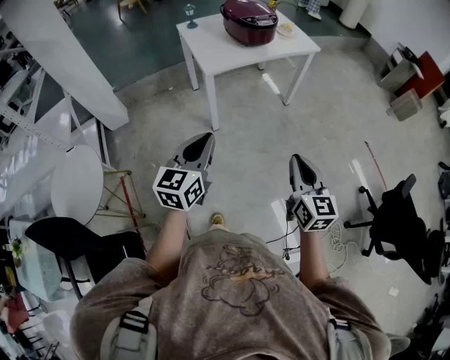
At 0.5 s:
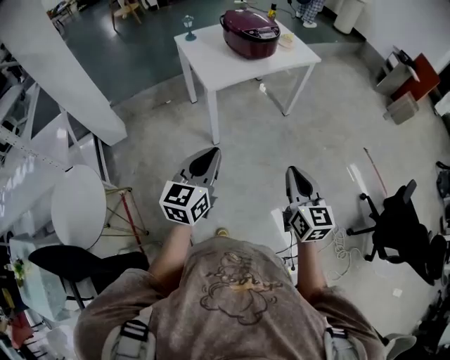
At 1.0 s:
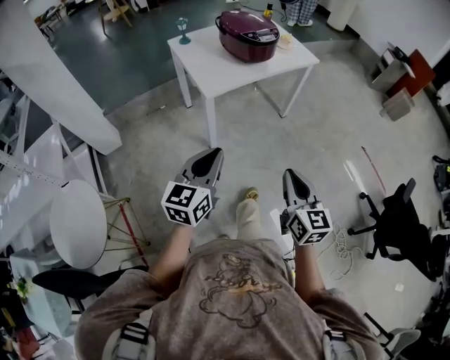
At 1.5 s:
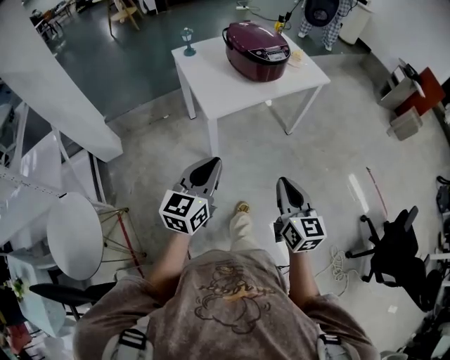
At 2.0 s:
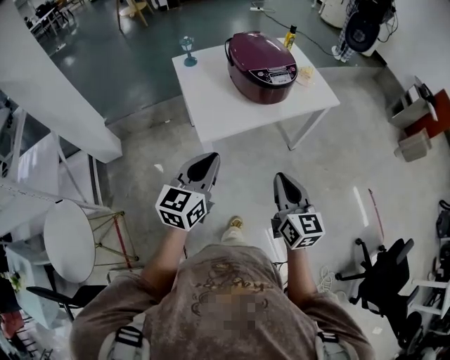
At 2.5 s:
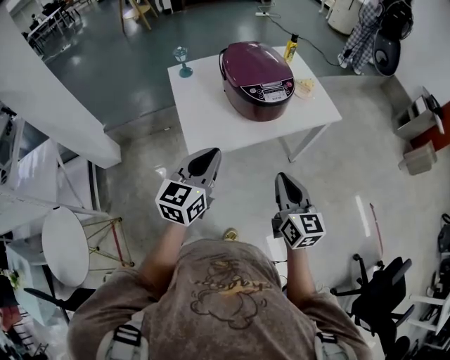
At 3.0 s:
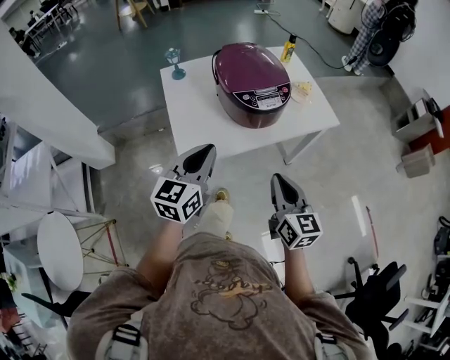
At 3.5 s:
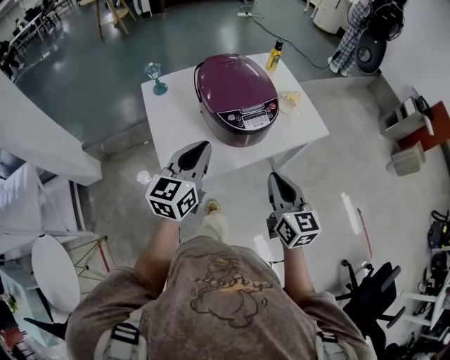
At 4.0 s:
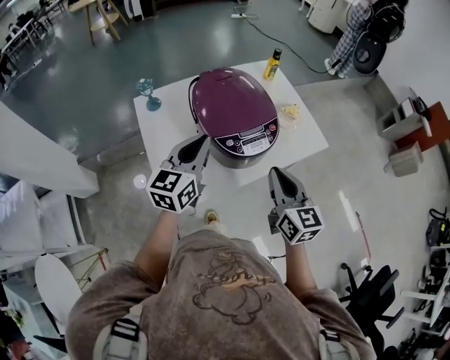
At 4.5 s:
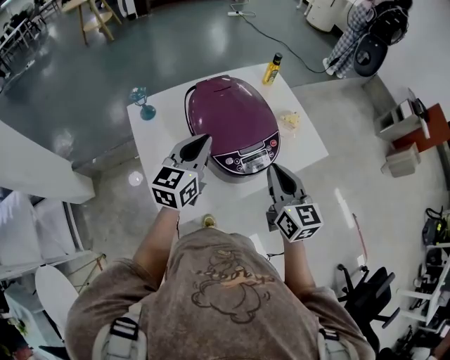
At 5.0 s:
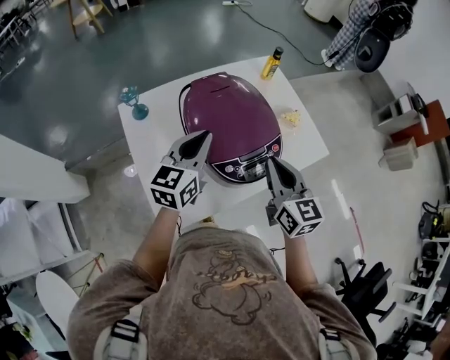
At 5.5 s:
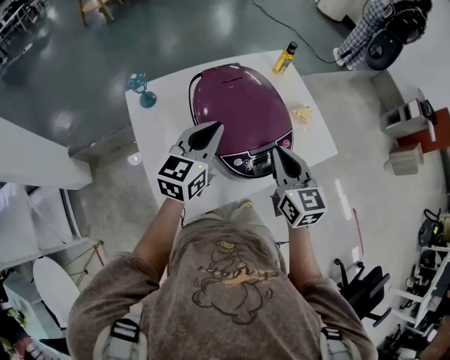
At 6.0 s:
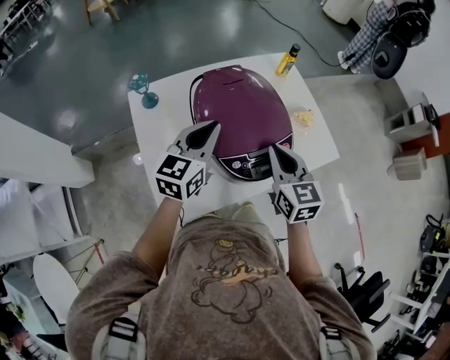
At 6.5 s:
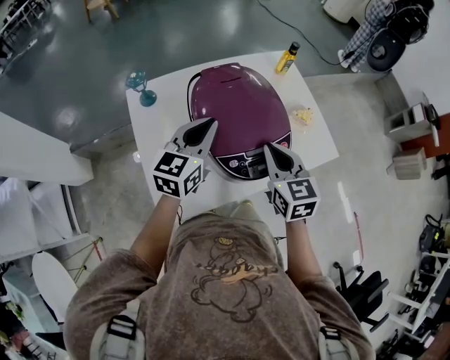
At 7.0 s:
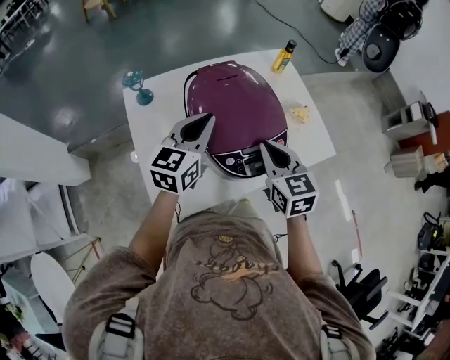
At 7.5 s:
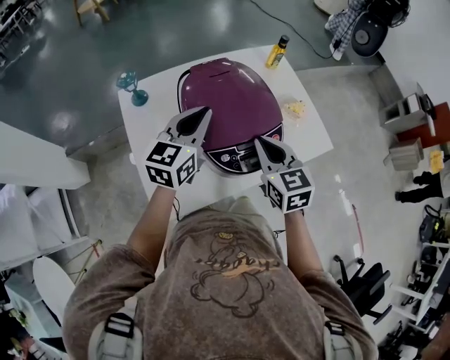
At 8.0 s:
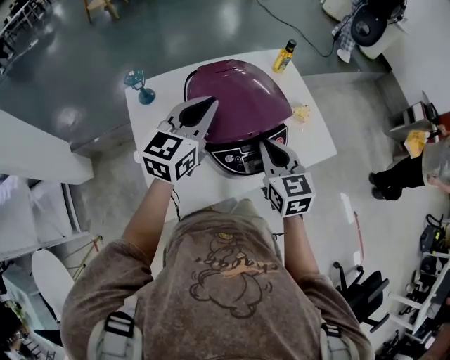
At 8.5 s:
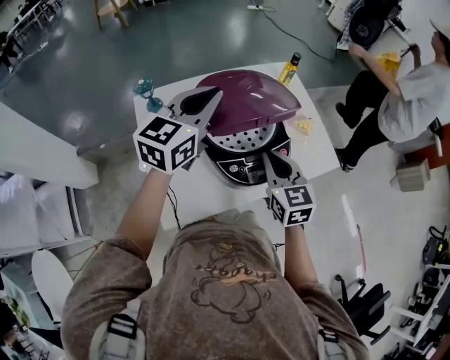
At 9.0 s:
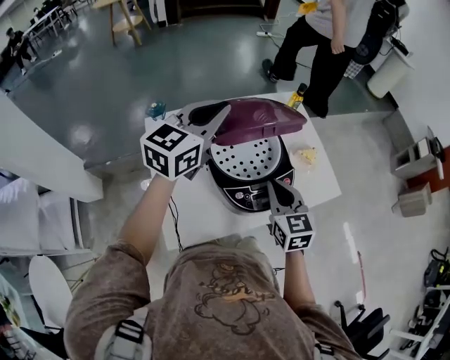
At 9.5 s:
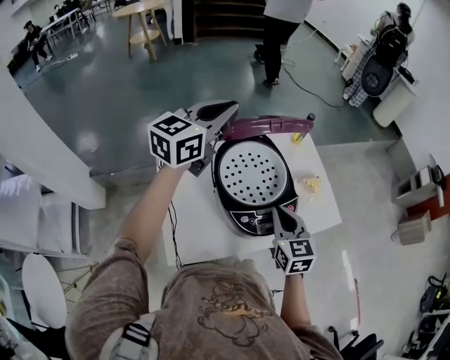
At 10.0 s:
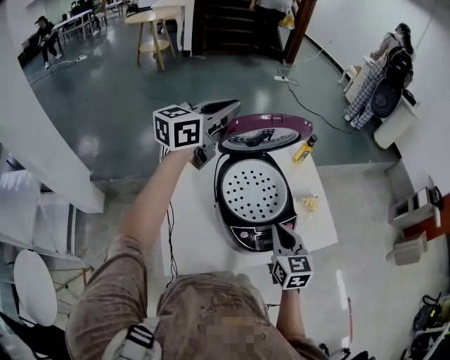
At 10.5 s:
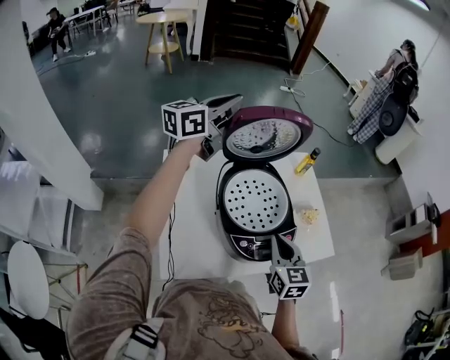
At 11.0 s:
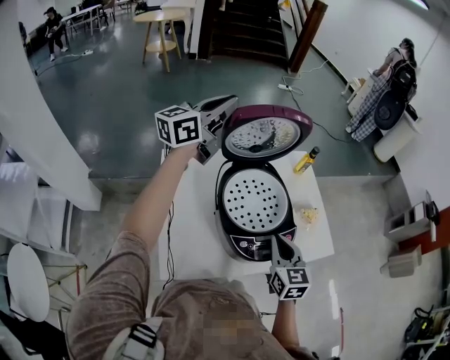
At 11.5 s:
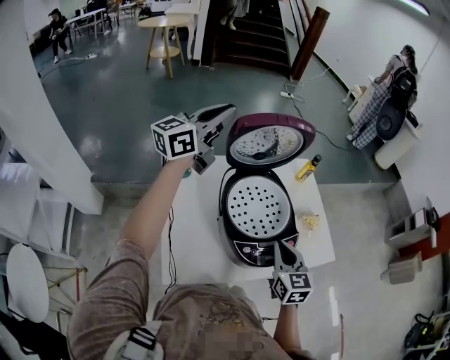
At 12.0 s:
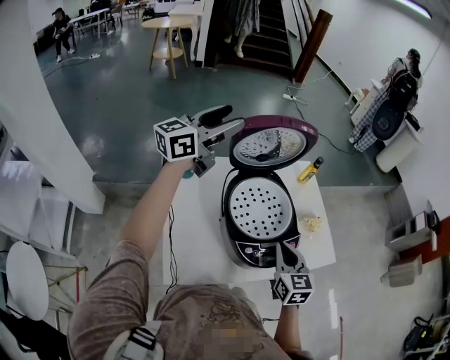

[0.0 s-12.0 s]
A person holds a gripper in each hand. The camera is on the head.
0.0 to 2.0 s: The two grippers go approximately 35 cm forward.
2.0 to 4.0 s: Both grippers travel together forward, approximately 35 cm.
4.0 to 6.0 s: Both grippers travel together forward, about 15 cm.
6.0 to 8.0 s: The left gripper is displaced upward by approximately 5 cm.
8.0 to 10.0 s: The left gripper is displaced upward, forward and to the left by approximately 20 cm.
10.0 to 12.0 s: The left gripper changes place by some 5 cm, and opens.

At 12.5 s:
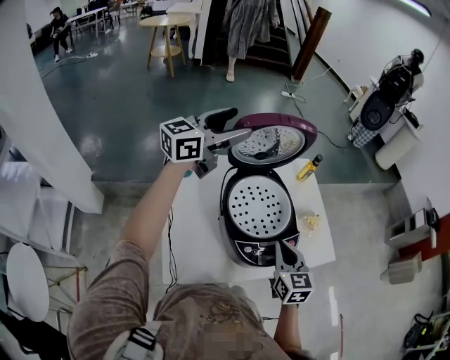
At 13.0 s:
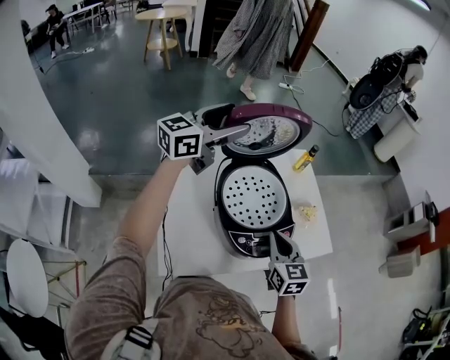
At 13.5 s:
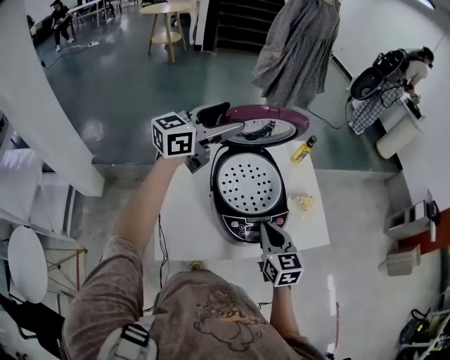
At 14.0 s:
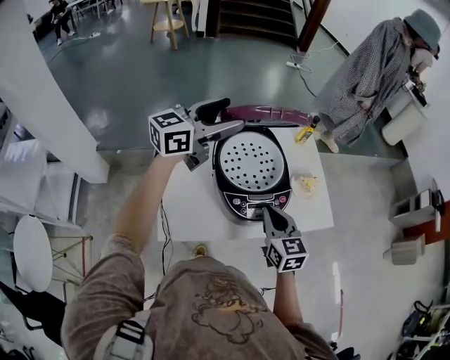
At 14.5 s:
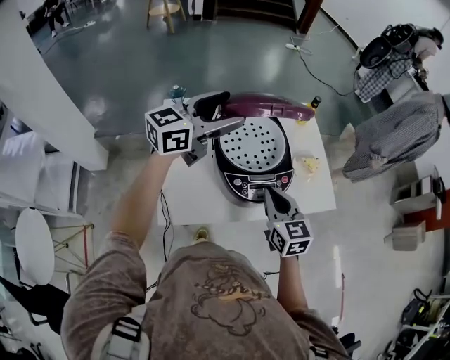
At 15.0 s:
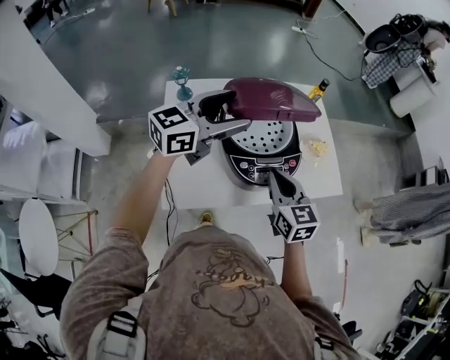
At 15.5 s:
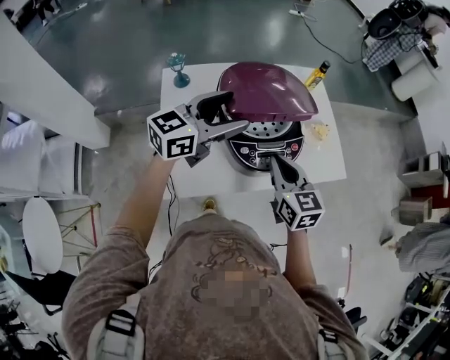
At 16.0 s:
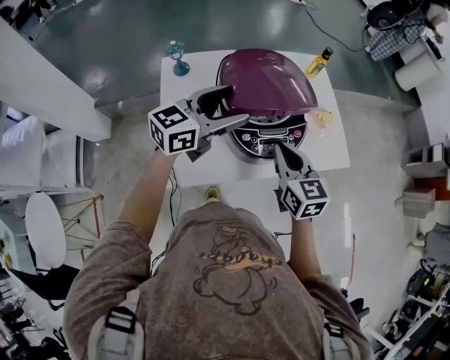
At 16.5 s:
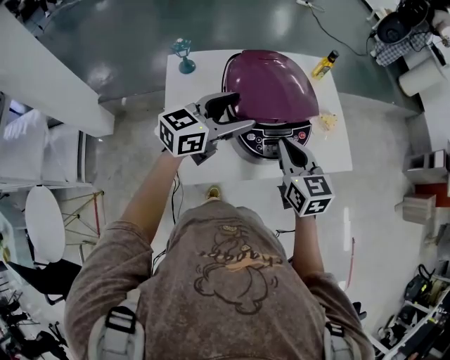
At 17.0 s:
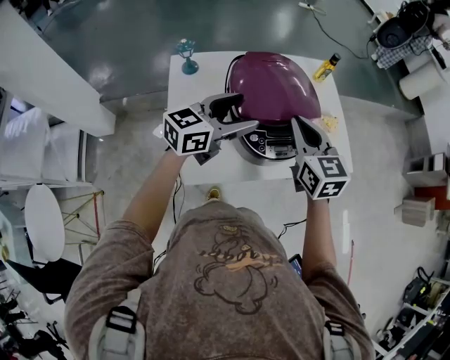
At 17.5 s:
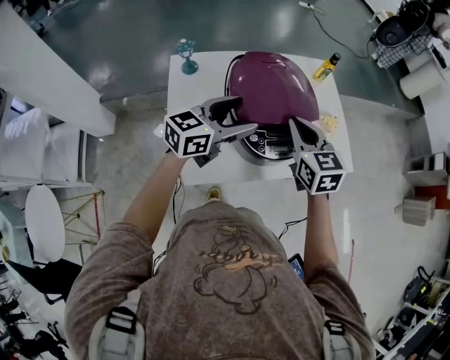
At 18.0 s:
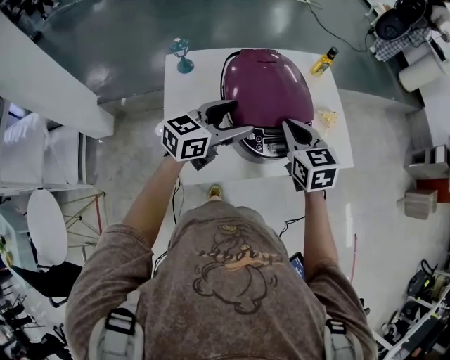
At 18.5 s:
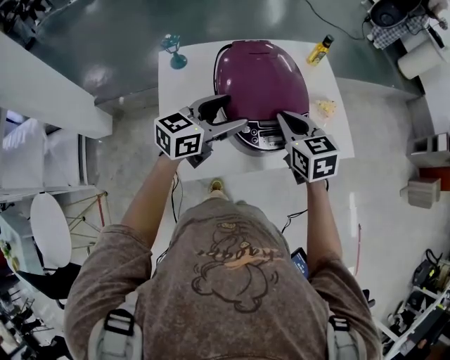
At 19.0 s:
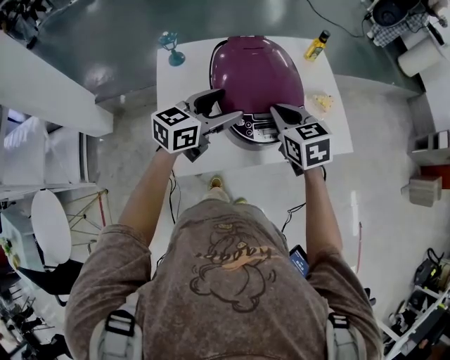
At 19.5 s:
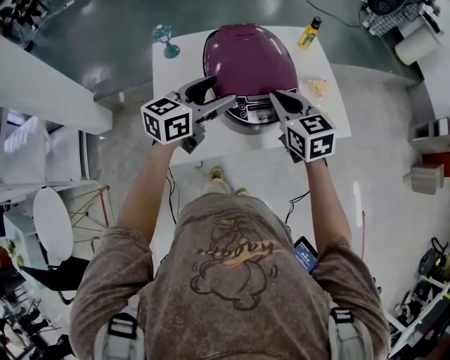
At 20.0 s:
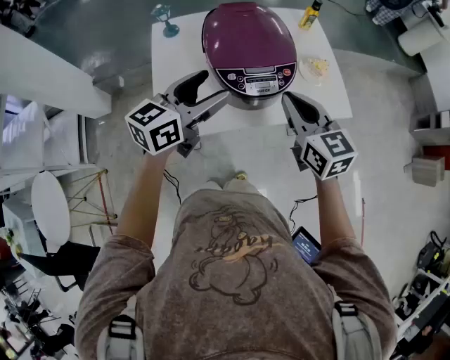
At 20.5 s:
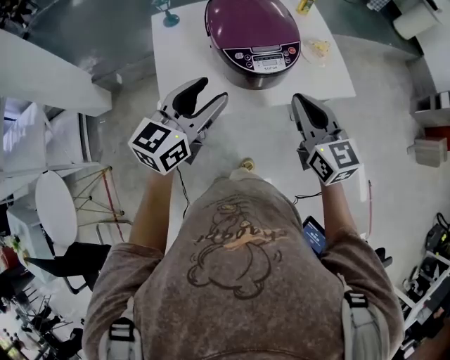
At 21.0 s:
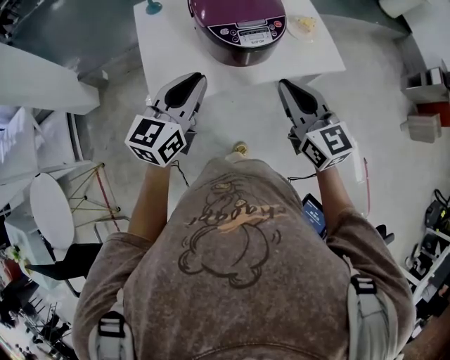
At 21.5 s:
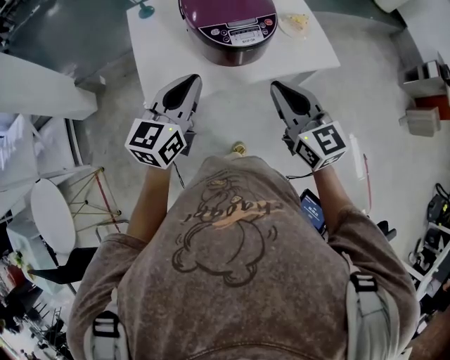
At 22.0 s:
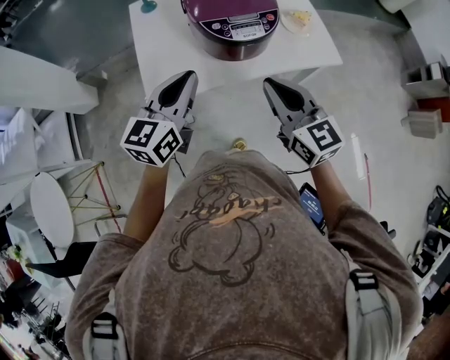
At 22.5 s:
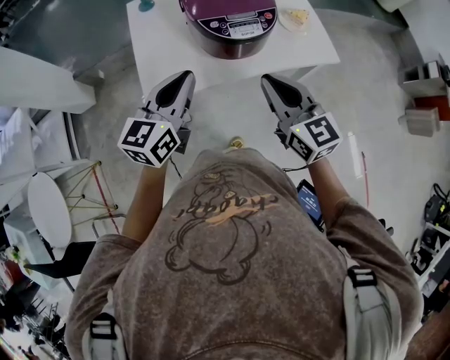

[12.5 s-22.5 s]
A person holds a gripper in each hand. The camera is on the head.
12.5 to 14.5 s: The left gripper goes approximately 15 cm backward, to the right and downward.
14.5 to 16.5 s: The left gripper shifts about 15 cm downward and backward.
18.5 to 20.5 s: The grippers both shift backward by roughly 15 cm. The right gripper rotates roughly 20 degrees.
20.5 to 22.5 s: The right gripper goes roughly 5 cm backward. Meanwhile the left gripper closes up.

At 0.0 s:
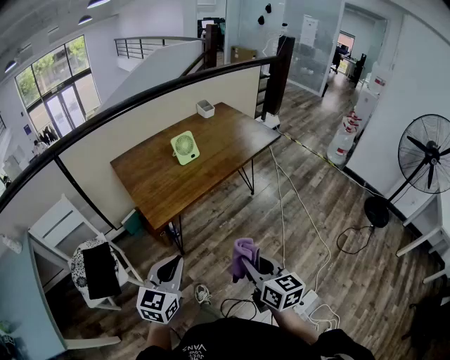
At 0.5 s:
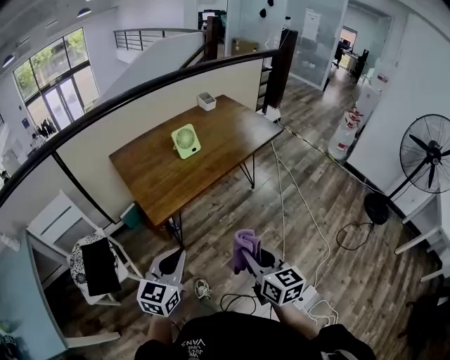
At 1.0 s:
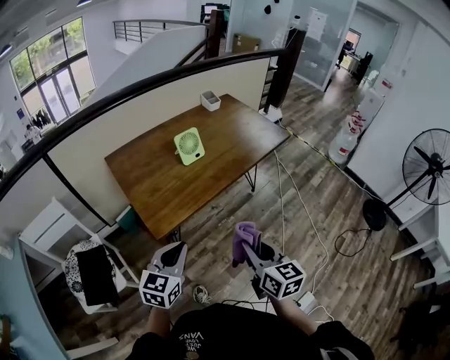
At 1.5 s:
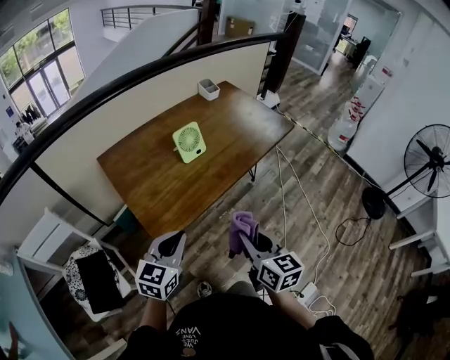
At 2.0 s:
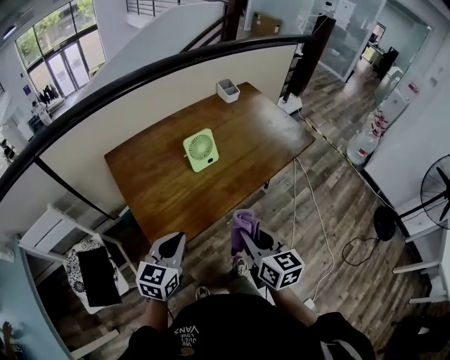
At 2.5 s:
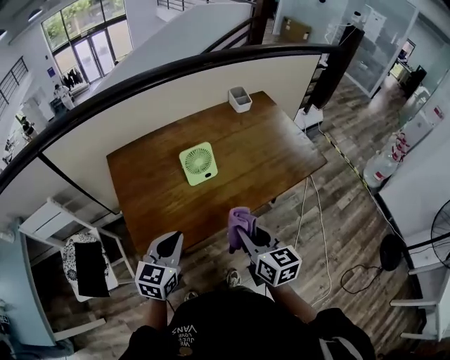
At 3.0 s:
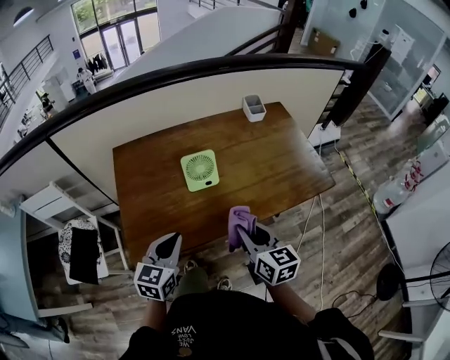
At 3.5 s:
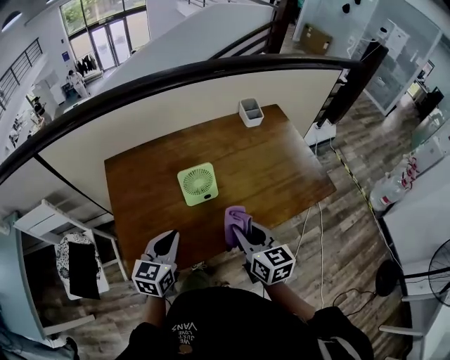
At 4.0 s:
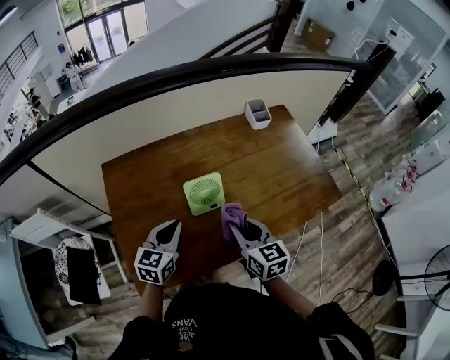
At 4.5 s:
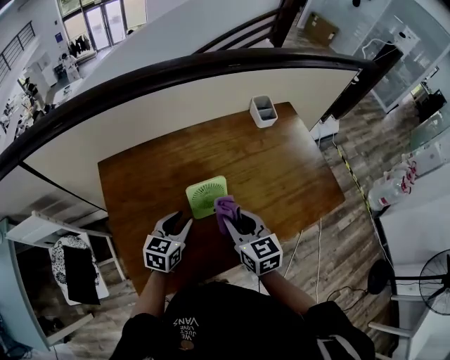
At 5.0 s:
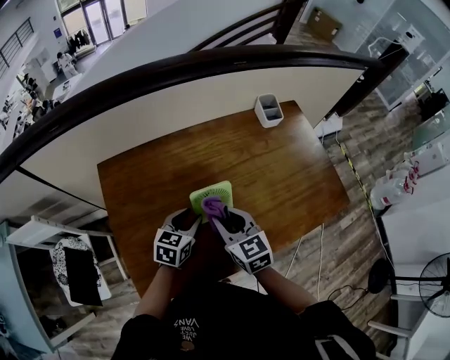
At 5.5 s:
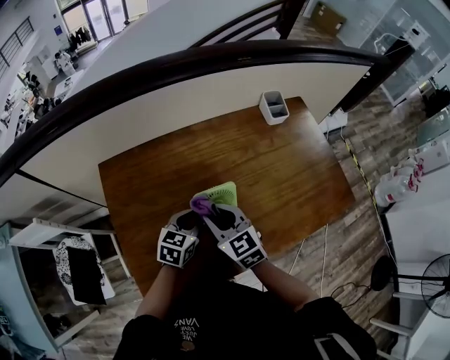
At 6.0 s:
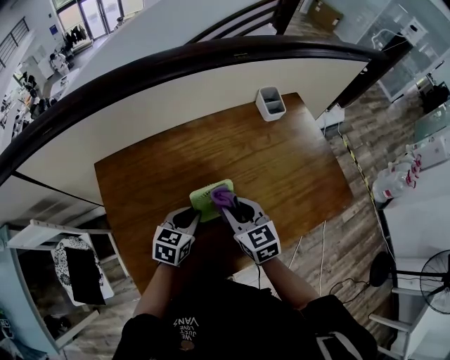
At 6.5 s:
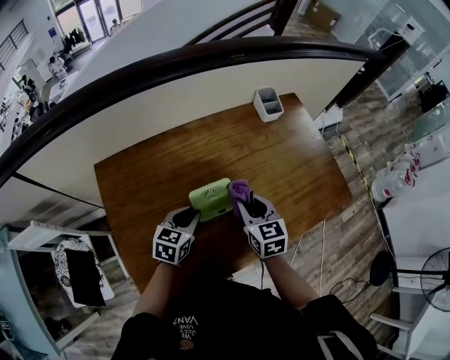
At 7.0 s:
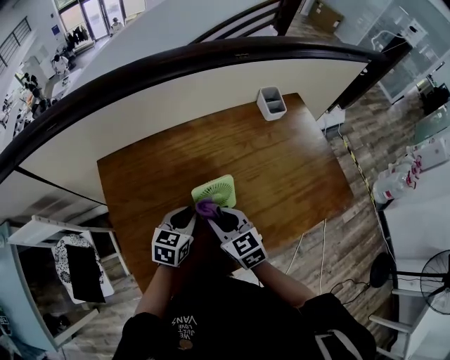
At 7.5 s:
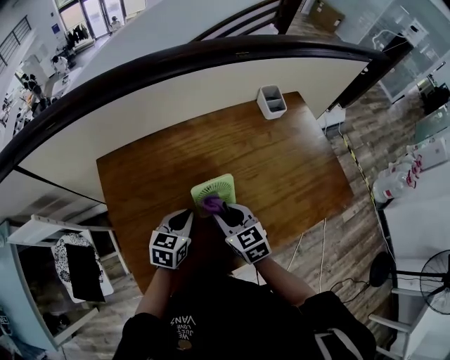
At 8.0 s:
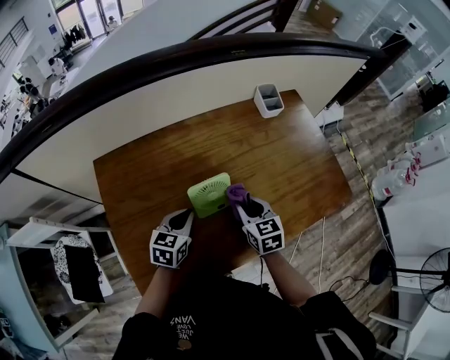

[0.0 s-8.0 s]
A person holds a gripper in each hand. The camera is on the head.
0.0 to 2.0 s: Both grippers move forward, some 30 cm.
2.0 to 4.0 s: Both grippers travel together forward, some 25 cm.
4.0 to 6.0 s: The left gripper goes about 10 cm downward and forward; the right gripper is displaced forward by approximately 10 cm.
6.0 to 8.0 s: The right gripper goes left and right, approximately 10 cm each way, reversing 2 times.
